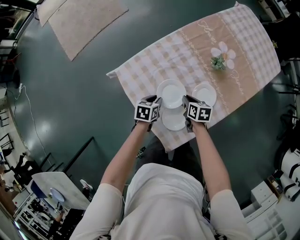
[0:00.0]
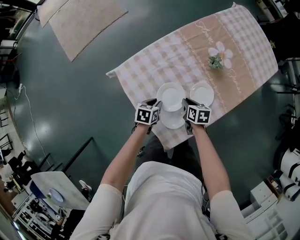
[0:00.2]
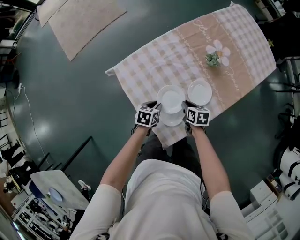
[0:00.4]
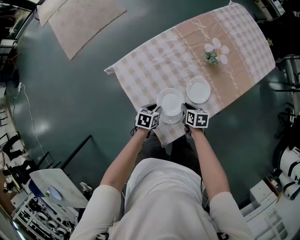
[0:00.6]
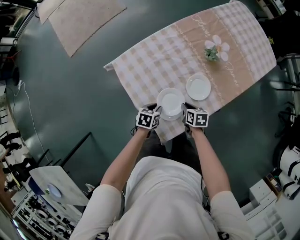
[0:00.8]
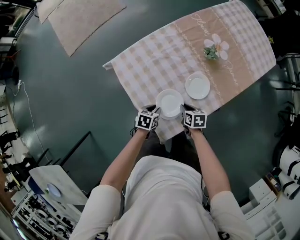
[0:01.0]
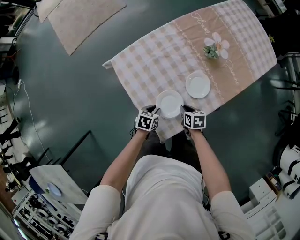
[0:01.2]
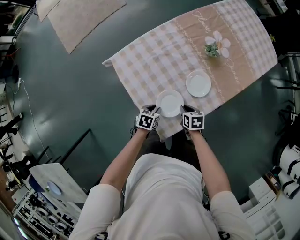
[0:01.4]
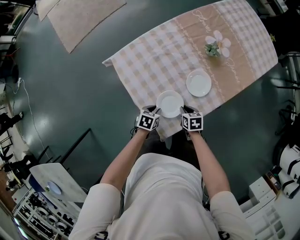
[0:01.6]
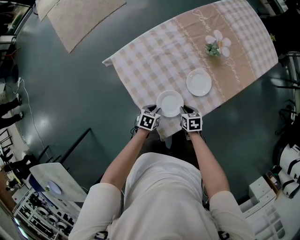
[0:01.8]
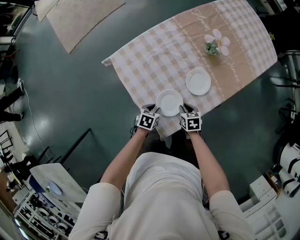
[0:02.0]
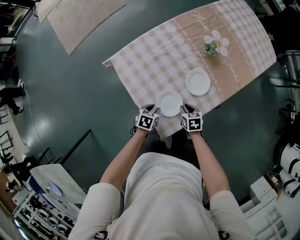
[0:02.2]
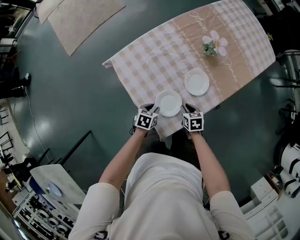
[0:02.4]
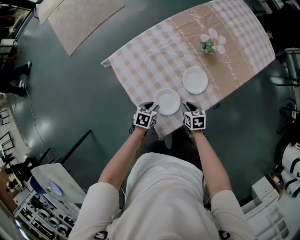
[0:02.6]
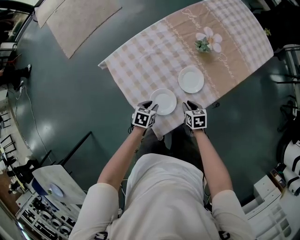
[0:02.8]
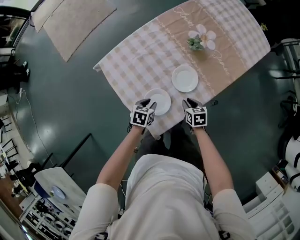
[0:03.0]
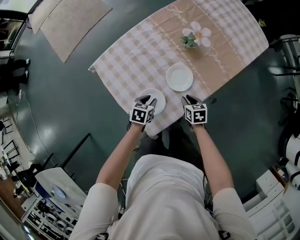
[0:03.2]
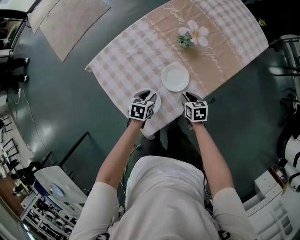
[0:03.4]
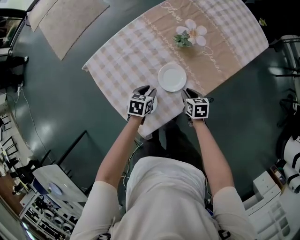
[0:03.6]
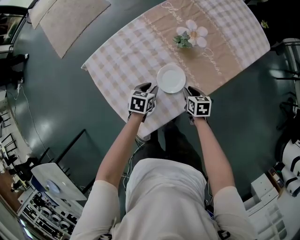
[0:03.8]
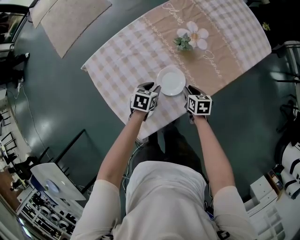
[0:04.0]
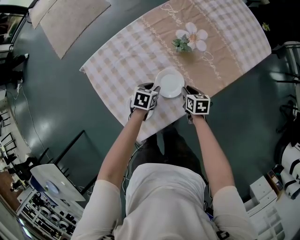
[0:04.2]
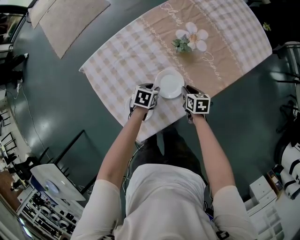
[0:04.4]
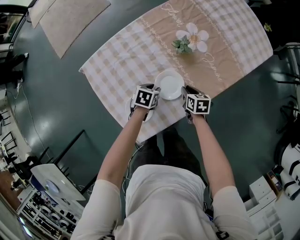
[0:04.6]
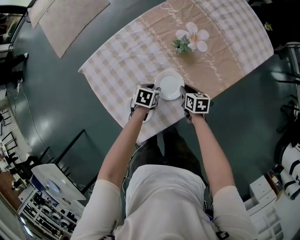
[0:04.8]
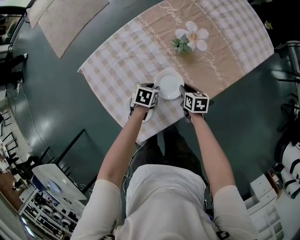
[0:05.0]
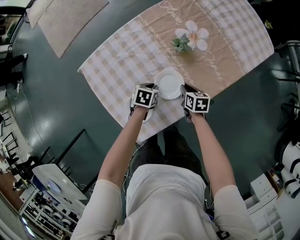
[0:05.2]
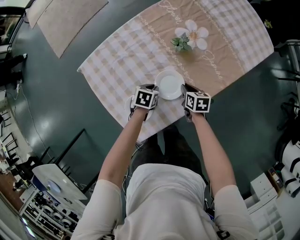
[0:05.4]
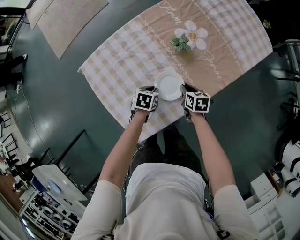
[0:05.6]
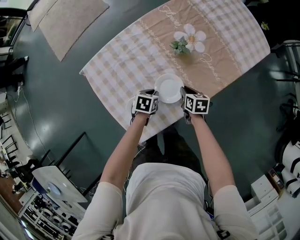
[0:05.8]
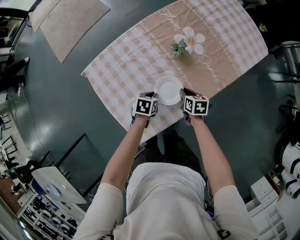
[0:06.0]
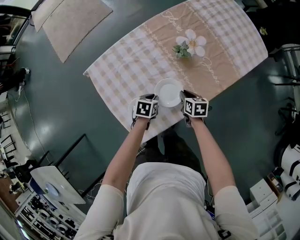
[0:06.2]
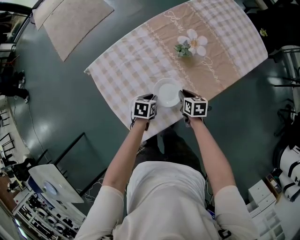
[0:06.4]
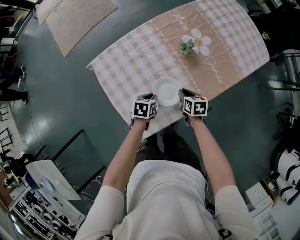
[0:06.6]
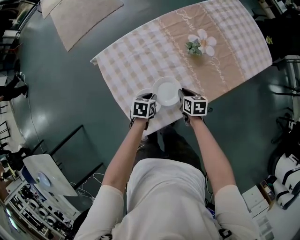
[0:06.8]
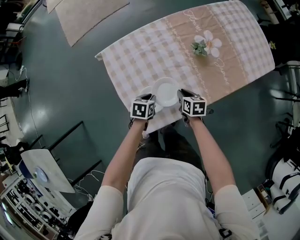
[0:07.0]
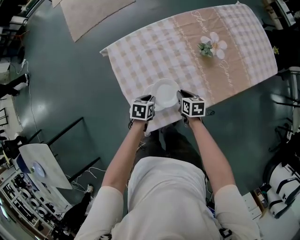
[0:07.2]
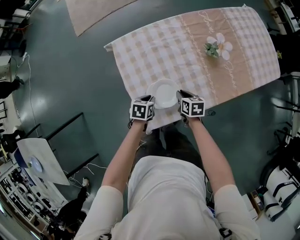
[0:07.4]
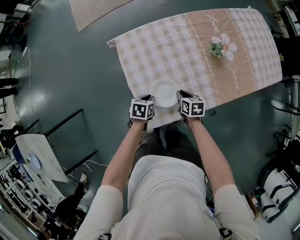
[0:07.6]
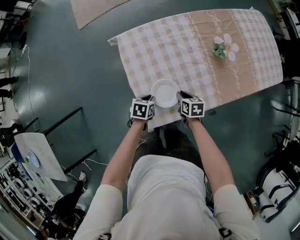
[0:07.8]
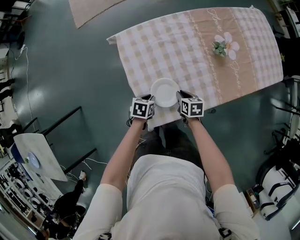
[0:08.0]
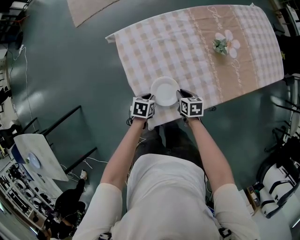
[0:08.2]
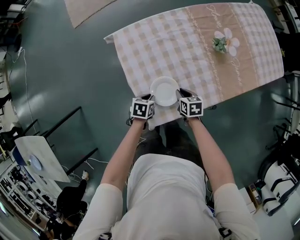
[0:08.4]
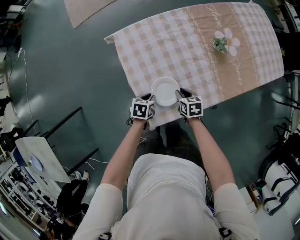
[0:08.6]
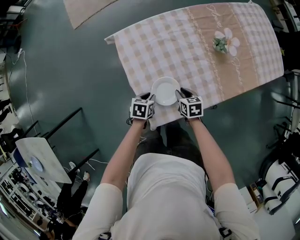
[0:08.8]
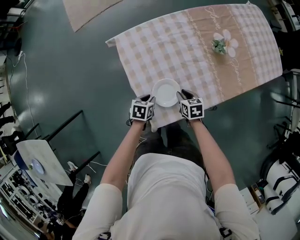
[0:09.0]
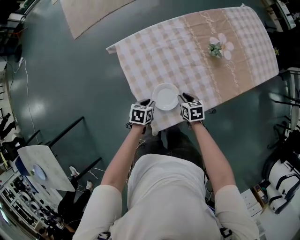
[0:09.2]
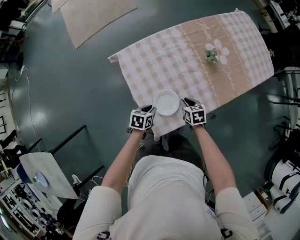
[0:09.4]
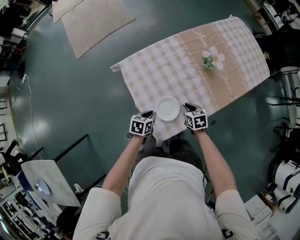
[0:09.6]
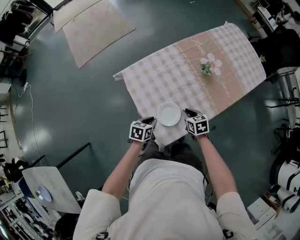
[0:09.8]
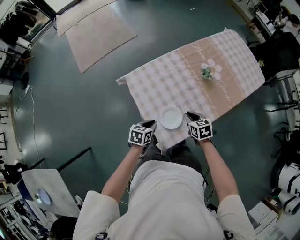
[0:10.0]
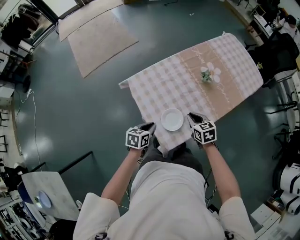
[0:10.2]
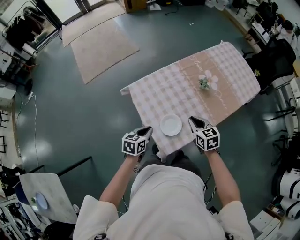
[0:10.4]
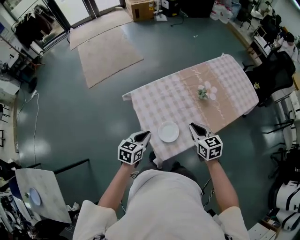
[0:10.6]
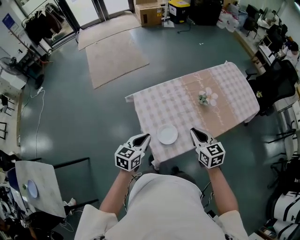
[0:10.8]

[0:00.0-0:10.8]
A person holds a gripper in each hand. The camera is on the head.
0:00.0 to 0:01.6: Both grippers travel together backward, roughly 15 cm.
0:01.6 to 0:03.0: The left gripper ends up about 5 cm from where it was, while the right gripper moves to the right, roughly 10 cm.
0:03.0 to 0:04.6: The two grippers go roughly 15 cm forward and to the right.
0:04.6 to 0:06.2: There are only small adjustments of the grippers.
0:06.2 to 0:07.8: The two grippers go approximately 20 cm to the left and backward.
0:07.8 to 0:09.2: There are only small adjustments of the grippers.
0:09.2 to 0:10.8: The grippers both shift upward by approximately 35 cm. The right gripper angles its fingers upward, by some 30 degrees; the left gripper points its fingers approximately 30 degrees further upward, and closes its fingers.

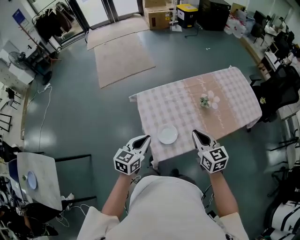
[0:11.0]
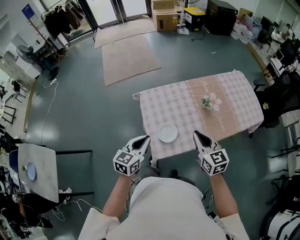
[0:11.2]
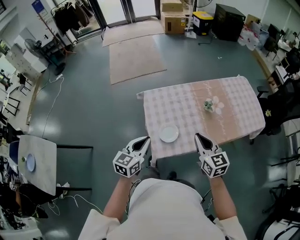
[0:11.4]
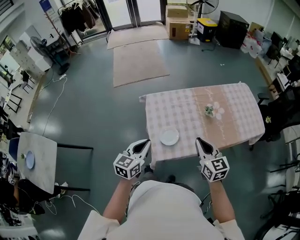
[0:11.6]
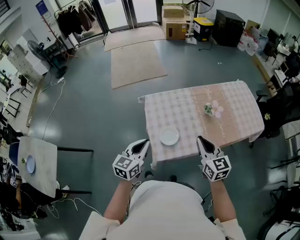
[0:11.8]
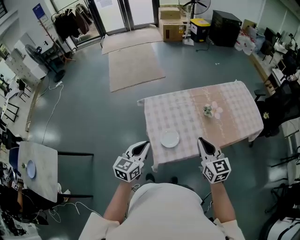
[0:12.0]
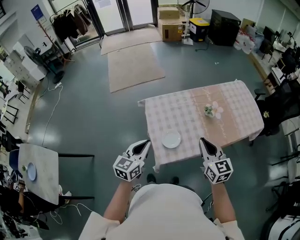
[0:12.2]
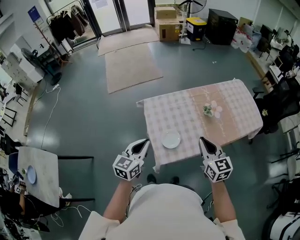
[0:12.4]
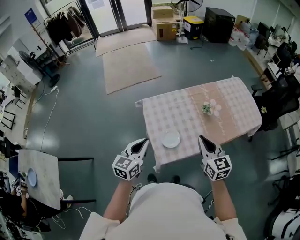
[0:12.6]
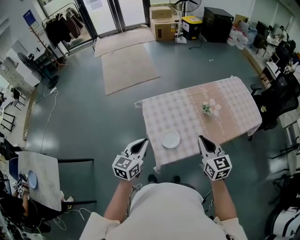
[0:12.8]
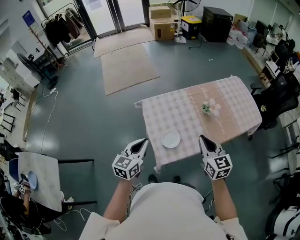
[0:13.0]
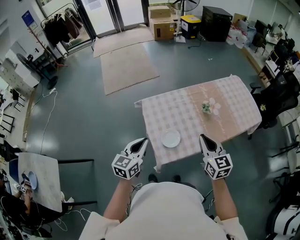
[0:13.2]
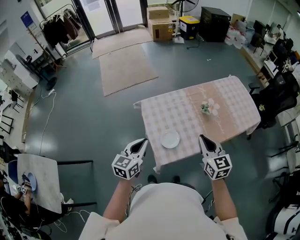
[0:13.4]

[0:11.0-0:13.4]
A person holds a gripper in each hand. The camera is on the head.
0:11.0 to 0:12.2: The right gripper shifts by about 5 cm, while the left gripper changes place by some 5 cm.
0:12.2 to 0:13.4: The grippers move only a little.

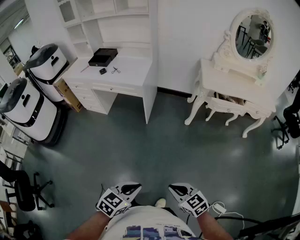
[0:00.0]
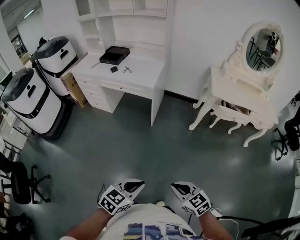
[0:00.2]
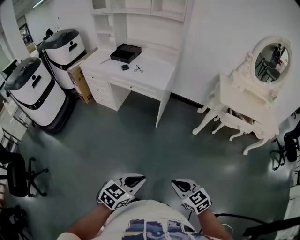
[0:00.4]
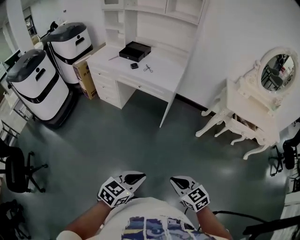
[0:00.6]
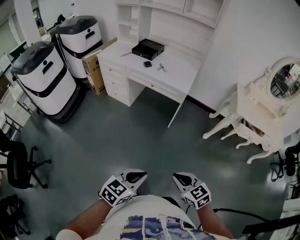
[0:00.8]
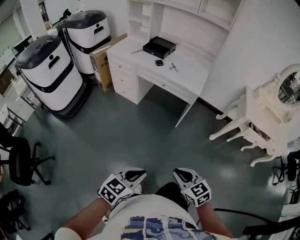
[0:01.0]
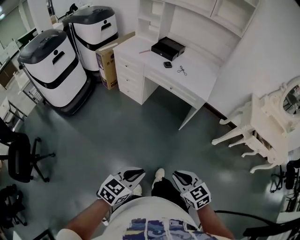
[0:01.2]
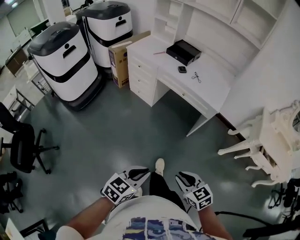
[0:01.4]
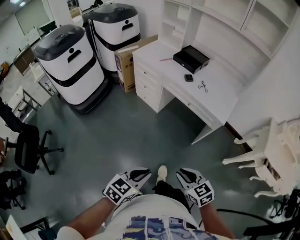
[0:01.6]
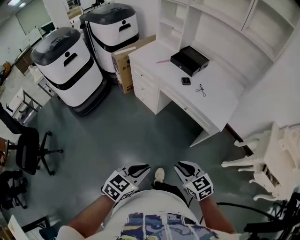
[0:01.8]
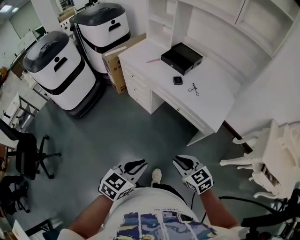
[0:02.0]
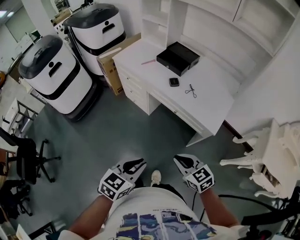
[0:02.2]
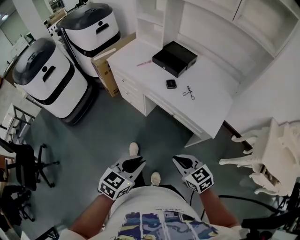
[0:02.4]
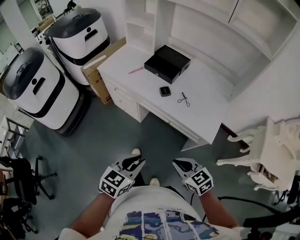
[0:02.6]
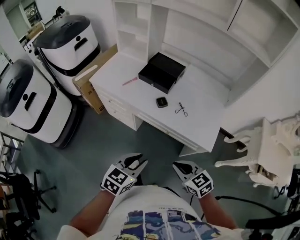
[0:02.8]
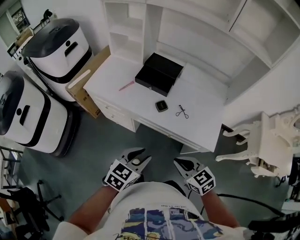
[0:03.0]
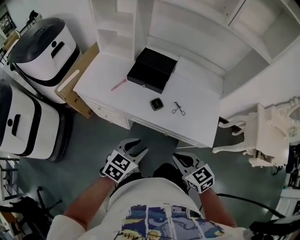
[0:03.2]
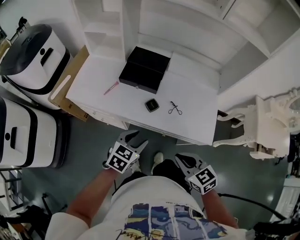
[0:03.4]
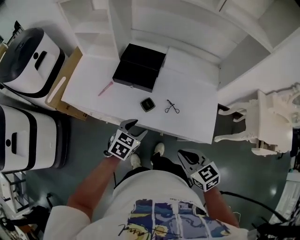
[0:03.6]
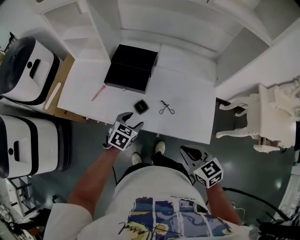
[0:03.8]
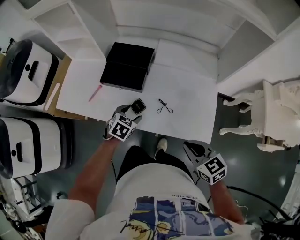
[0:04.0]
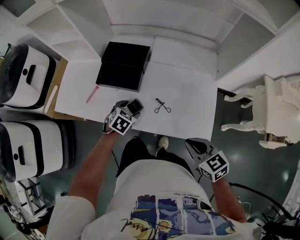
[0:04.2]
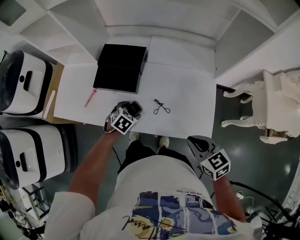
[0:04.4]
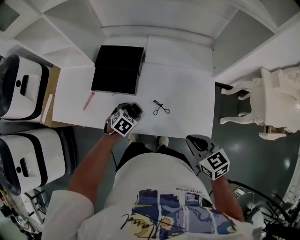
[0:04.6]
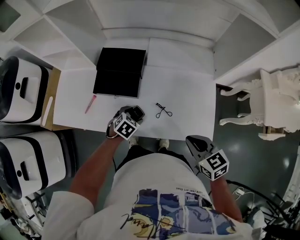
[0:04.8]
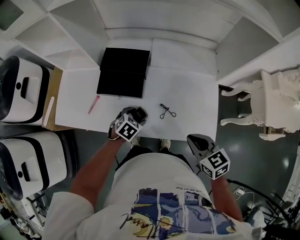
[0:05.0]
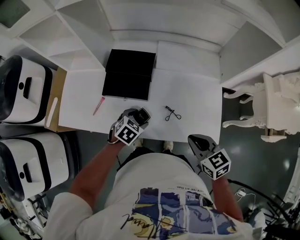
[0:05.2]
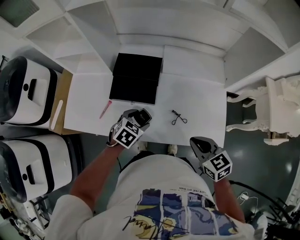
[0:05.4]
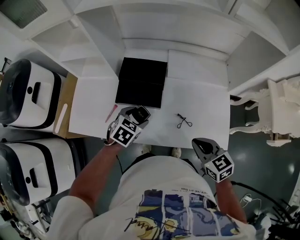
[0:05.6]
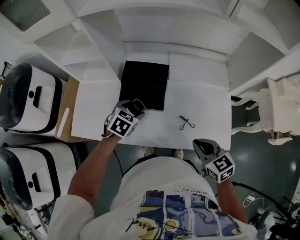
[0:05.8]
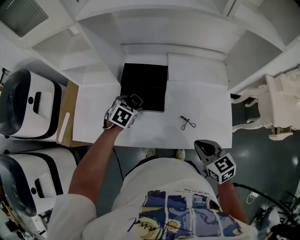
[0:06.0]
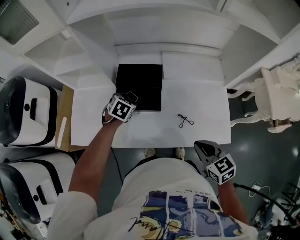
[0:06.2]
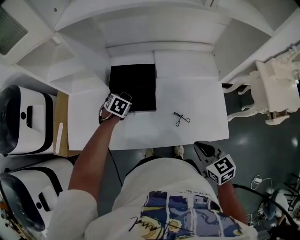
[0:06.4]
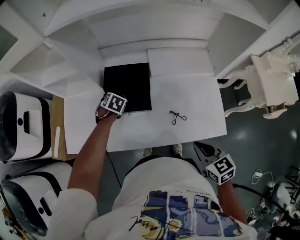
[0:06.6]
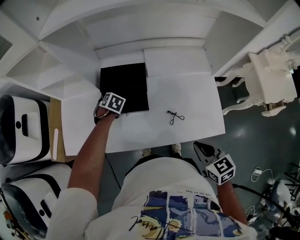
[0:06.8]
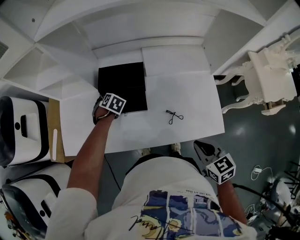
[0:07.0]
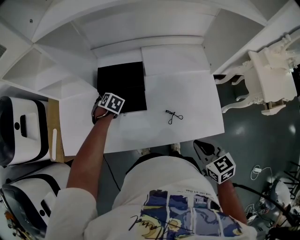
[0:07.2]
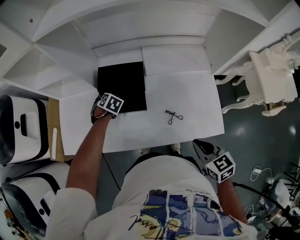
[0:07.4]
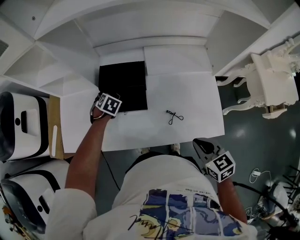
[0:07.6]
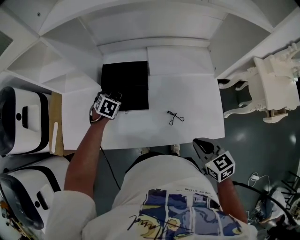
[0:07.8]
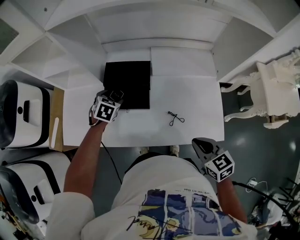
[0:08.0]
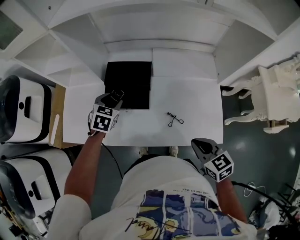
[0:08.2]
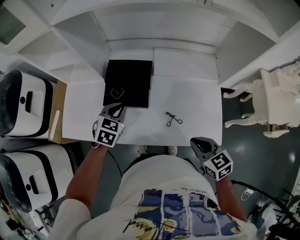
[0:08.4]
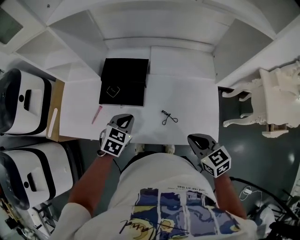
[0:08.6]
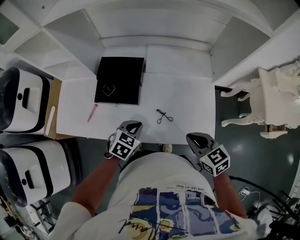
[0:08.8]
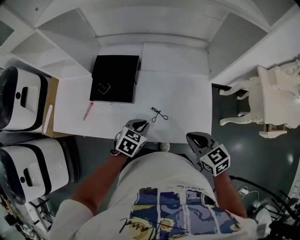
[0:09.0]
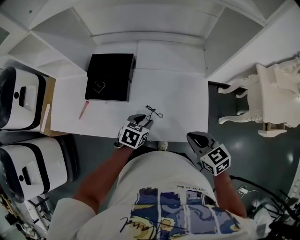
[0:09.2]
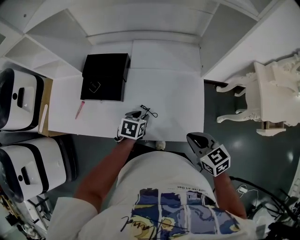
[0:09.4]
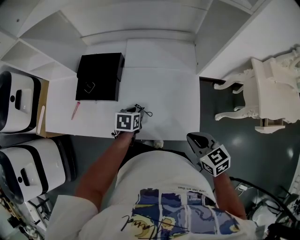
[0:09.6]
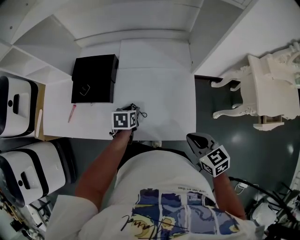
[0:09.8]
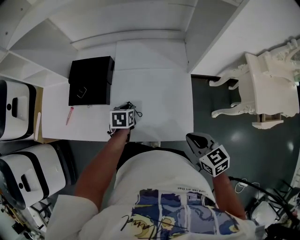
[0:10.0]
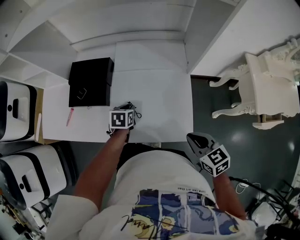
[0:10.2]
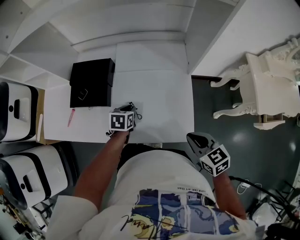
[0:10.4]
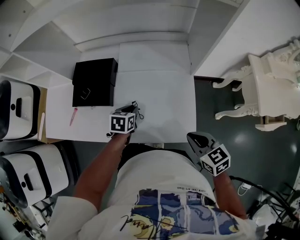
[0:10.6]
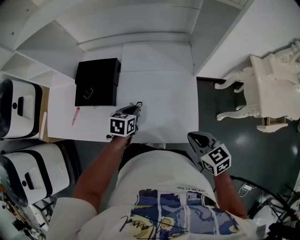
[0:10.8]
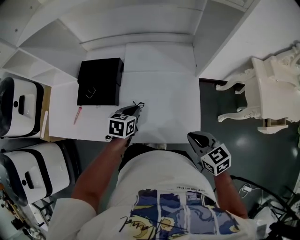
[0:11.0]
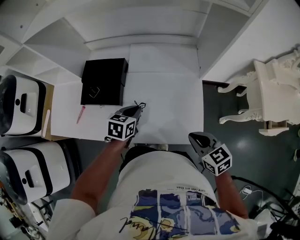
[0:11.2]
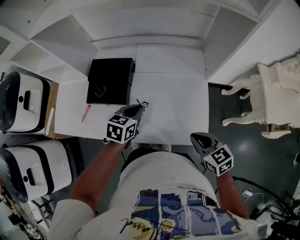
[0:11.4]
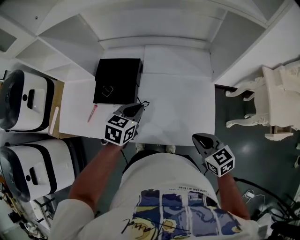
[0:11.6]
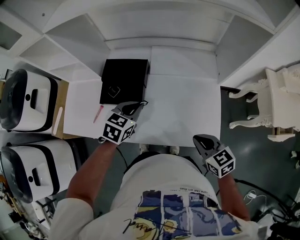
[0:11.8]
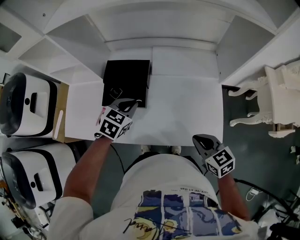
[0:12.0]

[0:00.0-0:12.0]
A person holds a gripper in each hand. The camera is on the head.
0:00.0 to 0:01.6: The grippers both shift to the left and forward by roughly 40 cm. The left gripper turns by approximately 20 degrees.
0:01.6 to 0:03.0: The two grippers go some 40 cm forward.
0:03.0 to 0:04.4: The left gripper goes about 35 cm forward and downward, points its fingers approximately 30 degrees further downward, and opens its fingers. Meanwhile the right gripper moves to the right and forward, roughly 20 cm, and changes its angle by roughly 20 degrees.
0:04.4 to 0:06.0: The right gripper moves to the left, approximately 10 cm; the left gripper travels to the left, forward and upward by approximately 20 cm.
0:06.0 to 0:07.6: The left gripper goes roughly 5 cm downward.
0:07.6 to 0:09.0: The right gripper shifts some 5 cm to the right. Meanwhile the left gripper heads backward and to the right, covering roughly 30 cm, rotates approximately 30 degrees, and closes its fingers.
0:09.0 to 0:10.4: The right gripper is displaced to the right by some 10 cm. The left gripper heads forward and downward, covering some 10 cm, and turns by some 20 degrees.
0:10.4 to 0:12.0: The right gripper shifts approximately 15 cm to the left, while the left gripper travels upward and to the left by approximately 20 cm, and rotates some 30 degrees.
